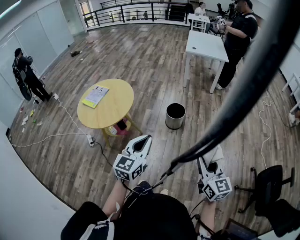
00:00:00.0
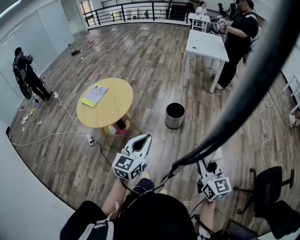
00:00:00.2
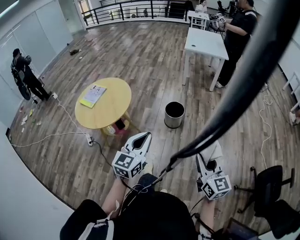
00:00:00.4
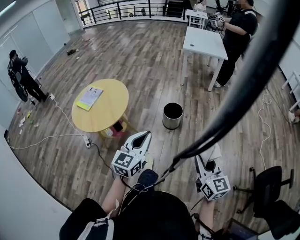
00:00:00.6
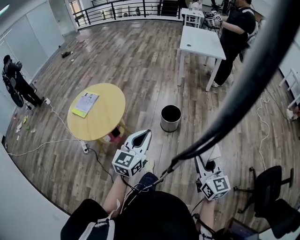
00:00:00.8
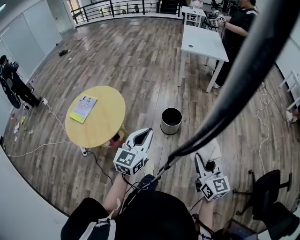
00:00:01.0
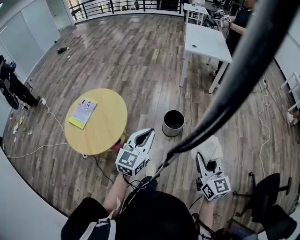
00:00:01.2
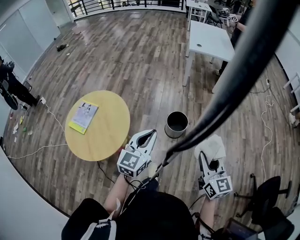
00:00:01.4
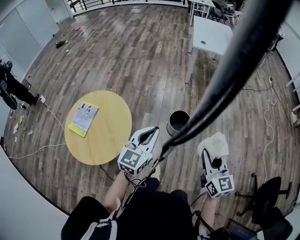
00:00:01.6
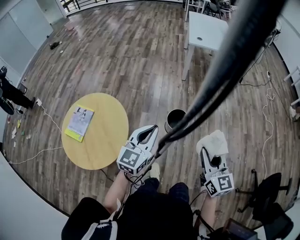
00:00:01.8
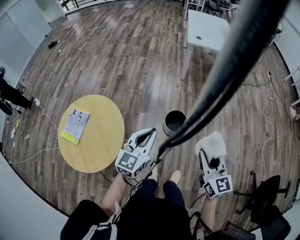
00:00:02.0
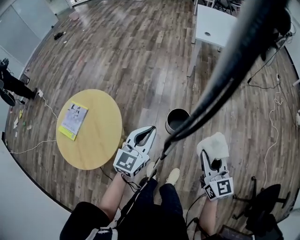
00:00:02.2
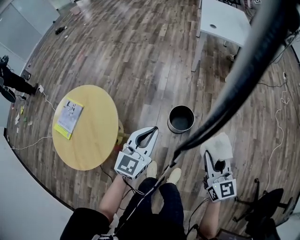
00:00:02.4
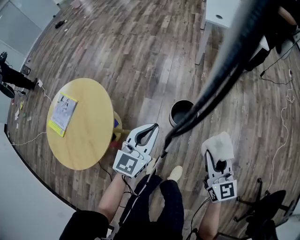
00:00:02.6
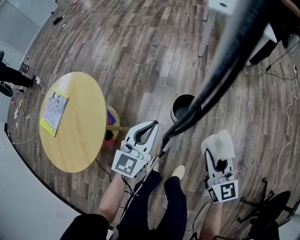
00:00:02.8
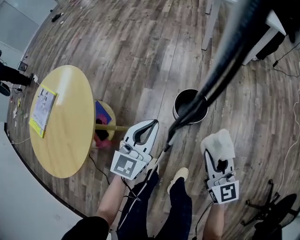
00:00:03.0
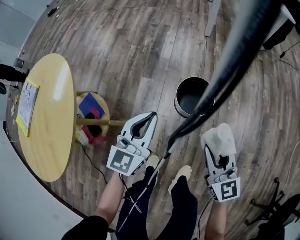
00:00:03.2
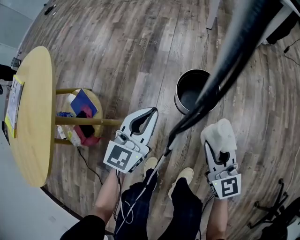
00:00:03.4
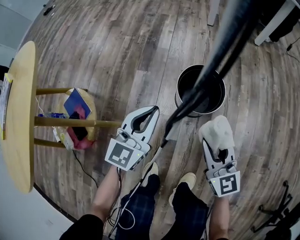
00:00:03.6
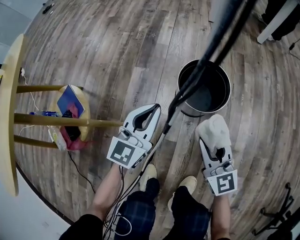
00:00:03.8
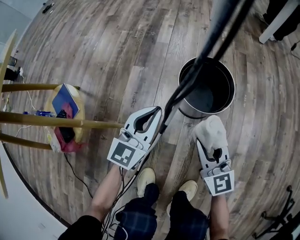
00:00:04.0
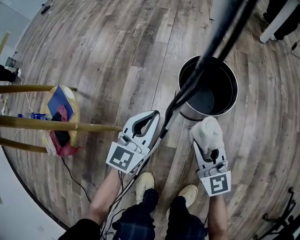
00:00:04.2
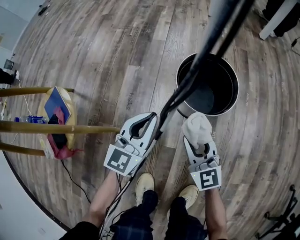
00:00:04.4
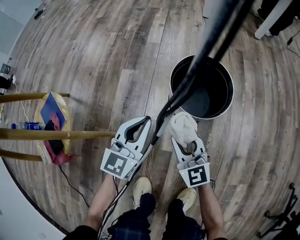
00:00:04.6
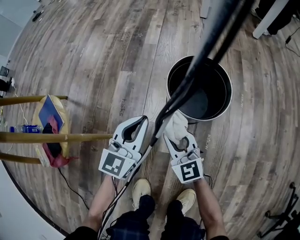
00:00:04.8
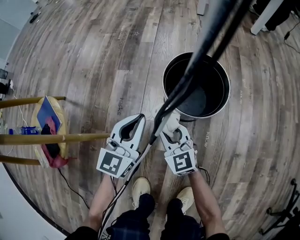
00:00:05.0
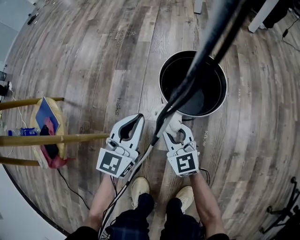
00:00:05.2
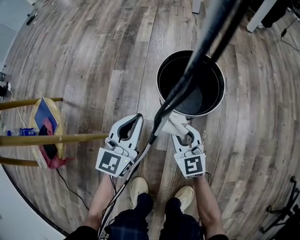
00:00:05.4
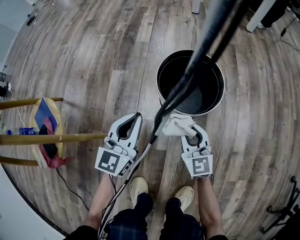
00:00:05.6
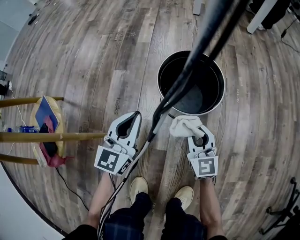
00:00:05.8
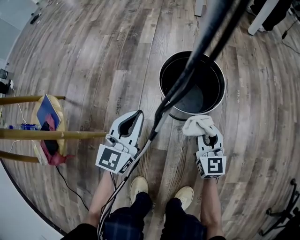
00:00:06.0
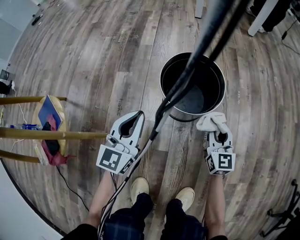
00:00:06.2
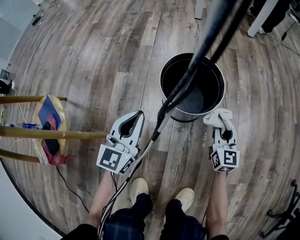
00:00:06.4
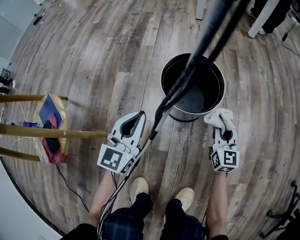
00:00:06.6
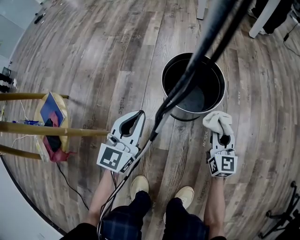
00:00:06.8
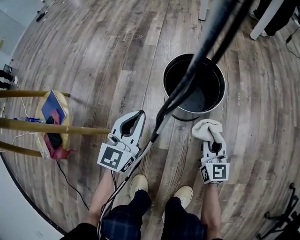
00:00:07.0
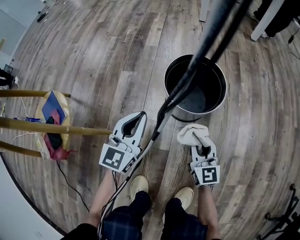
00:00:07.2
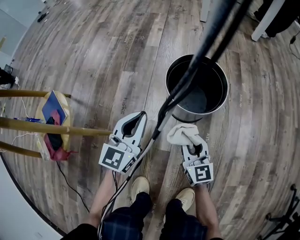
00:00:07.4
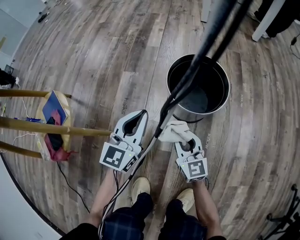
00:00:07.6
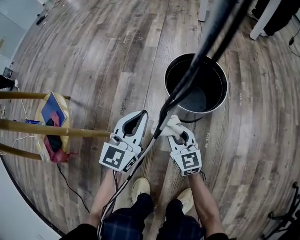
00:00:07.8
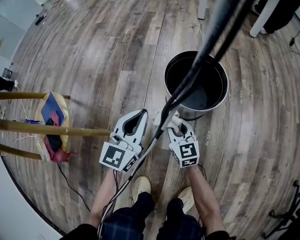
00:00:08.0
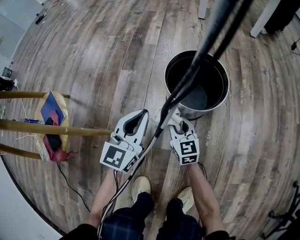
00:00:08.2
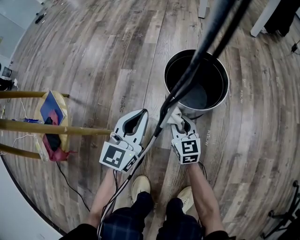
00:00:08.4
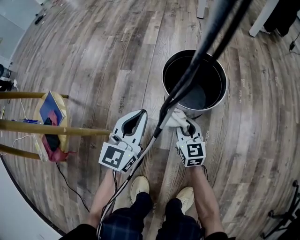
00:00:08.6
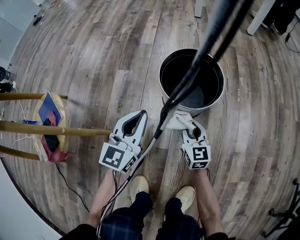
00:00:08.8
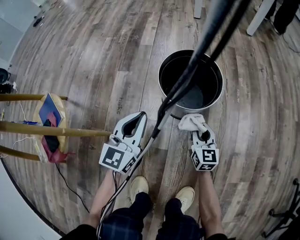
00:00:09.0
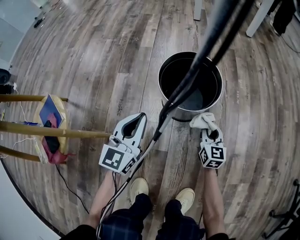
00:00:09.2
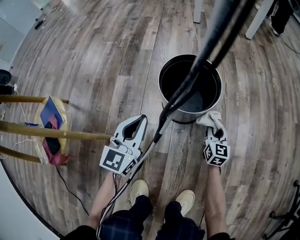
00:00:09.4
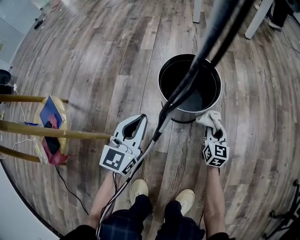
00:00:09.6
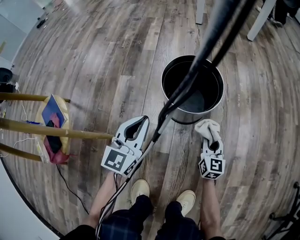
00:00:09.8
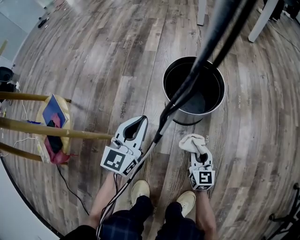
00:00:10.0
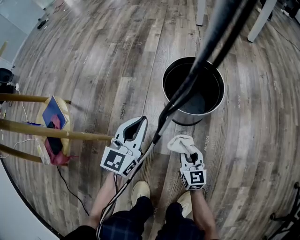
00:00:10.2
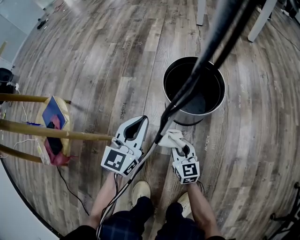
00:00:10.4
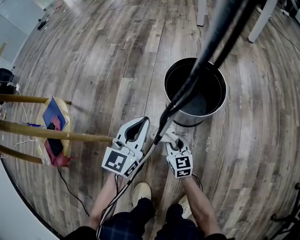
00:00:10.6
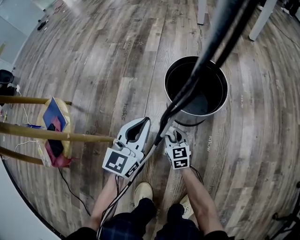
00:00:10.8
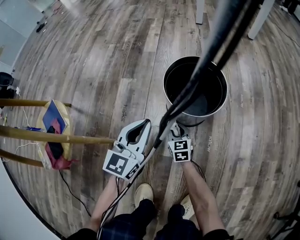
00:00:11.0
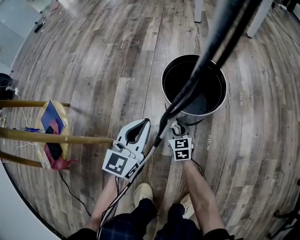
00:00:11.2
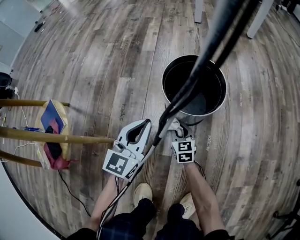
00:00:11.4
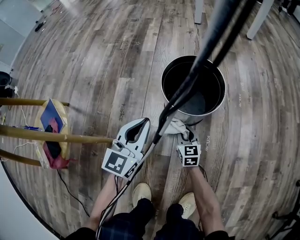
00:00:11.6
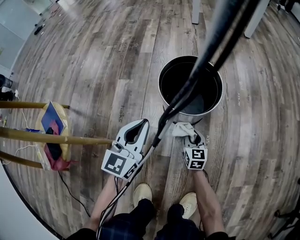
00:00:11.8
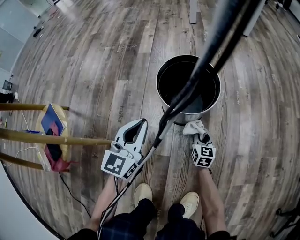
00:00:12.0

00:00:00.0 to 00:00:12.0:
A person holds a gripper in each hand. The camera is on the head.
00:00:00.0 to 00:00:01.6: Both grippers travel together forward, approximately 35 cm.
00:00:01.6 to 00:00:03.0: Both grippers move downward and forward, roughly 35 cm.
00:00:03.0 to 00:00:04.4: The two grippers go roughly 40 cm downward.
00:00:04.4 to 00:00:06.0: The right gripper heads to the right and downward, covering some 15 cm, and swivels roughly 20 degrees.
00:00:06.0 to 00:00:07.6: The right gripper moves to the left, about 10 cm.
00:00:07.6 to 00:00:09.0: The right gripper goes some 10 cm to the right and downward.
00:00:09.0 to 00:00:10.4: The right gripper travels to the left and backward by roughly 10 cm.
00:00:10.4 to 00:00:12.0: The right gripper shifts about 15 cm to the right, downward and forward, and rotates approximately 20 degrees.

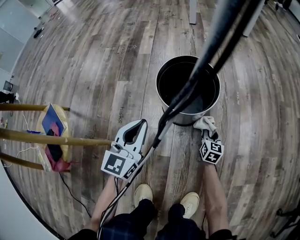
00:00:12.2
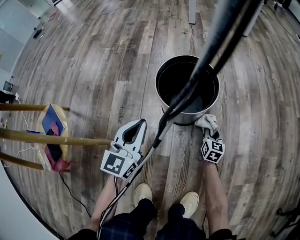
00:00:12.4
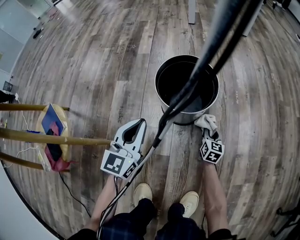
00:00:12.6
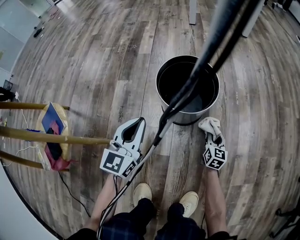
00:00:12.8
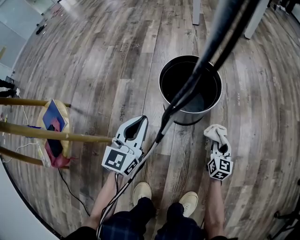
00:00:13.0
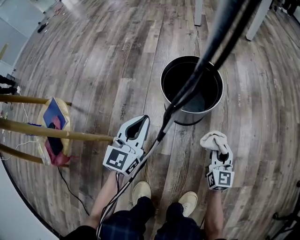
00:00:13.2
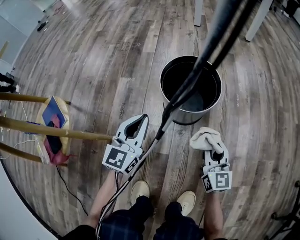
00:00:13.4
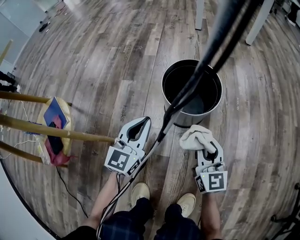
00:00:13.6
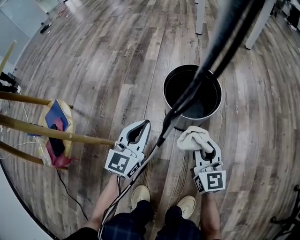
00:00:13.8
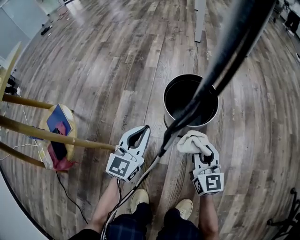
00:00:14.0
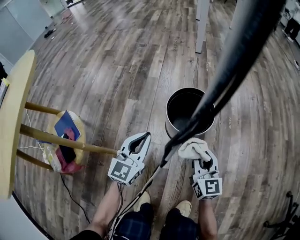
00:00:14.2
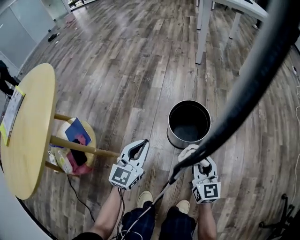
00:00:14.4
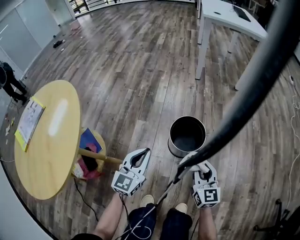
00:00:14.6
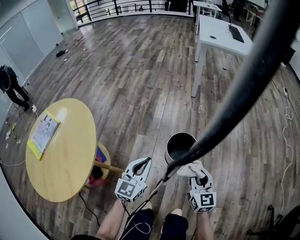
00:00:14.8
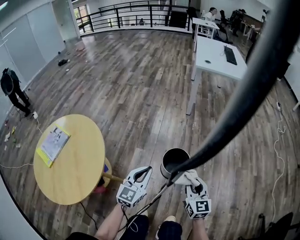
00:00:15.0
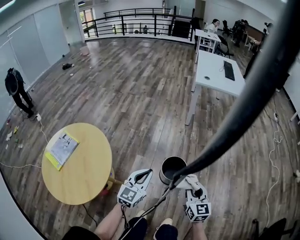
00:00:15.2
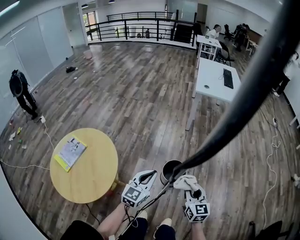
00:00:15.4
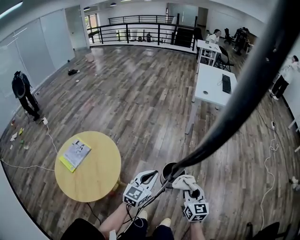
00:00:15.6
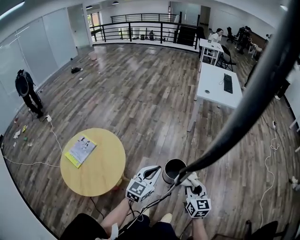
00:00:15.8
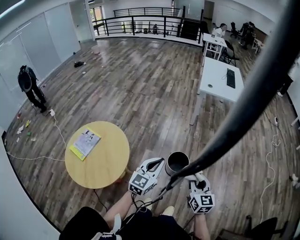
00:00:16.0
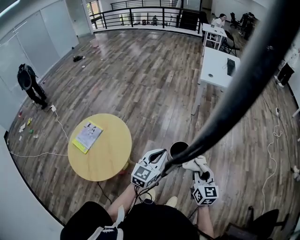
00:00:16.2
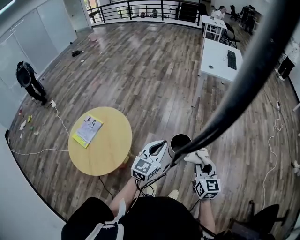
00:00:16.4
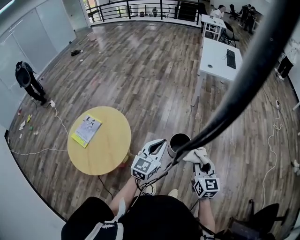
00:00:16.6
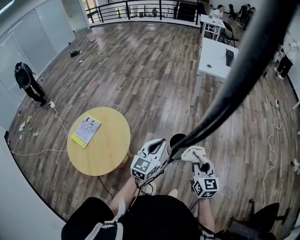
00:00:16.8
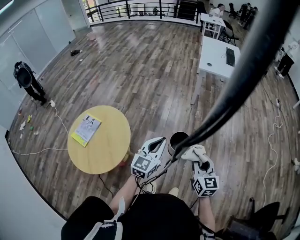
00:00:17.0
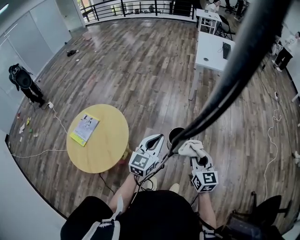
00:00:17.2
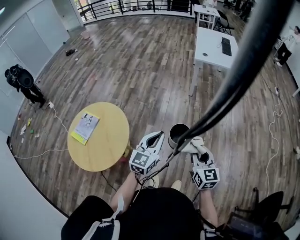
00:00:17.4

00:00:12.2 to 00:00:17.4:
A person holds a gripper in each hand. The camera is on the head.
00:00:12.2 to 00:00:14.0: The right gripper is displaced upward by about 25 cm, and swivels roughly 30 degrees.
00:00:14.0 to 00:00:15.6: The two grippers go roughly 60 cm upward.
00:00:15.6 to 00:00:17.4: The grippers both shift upward by approximately 10 cm.

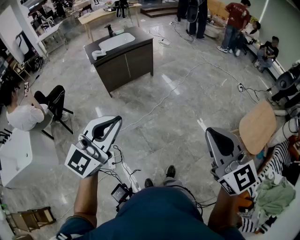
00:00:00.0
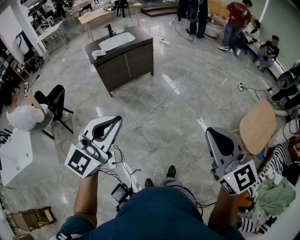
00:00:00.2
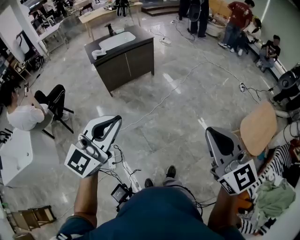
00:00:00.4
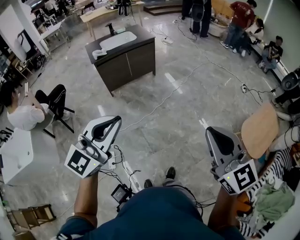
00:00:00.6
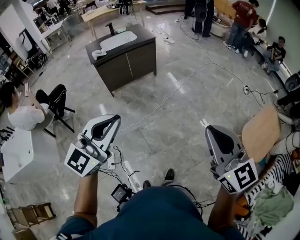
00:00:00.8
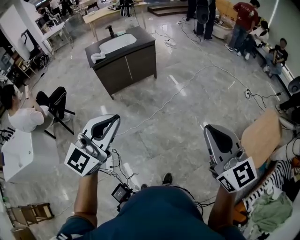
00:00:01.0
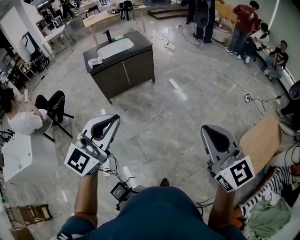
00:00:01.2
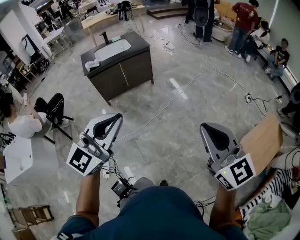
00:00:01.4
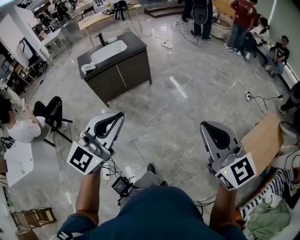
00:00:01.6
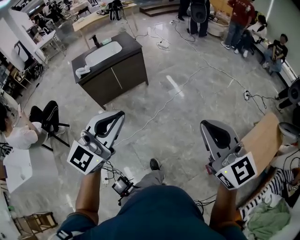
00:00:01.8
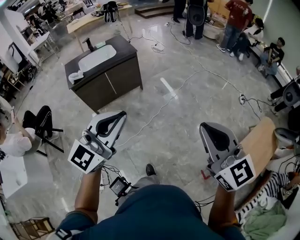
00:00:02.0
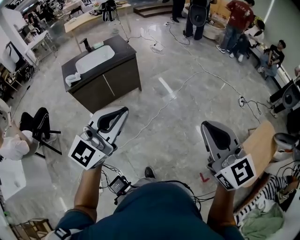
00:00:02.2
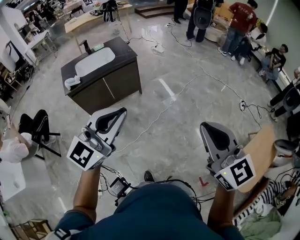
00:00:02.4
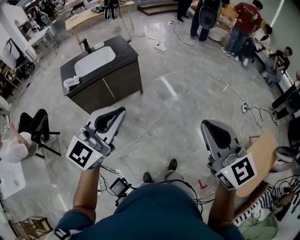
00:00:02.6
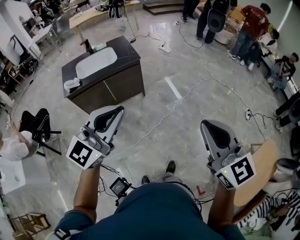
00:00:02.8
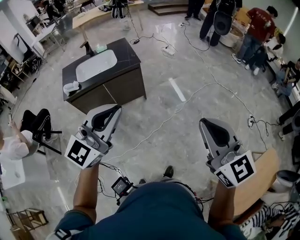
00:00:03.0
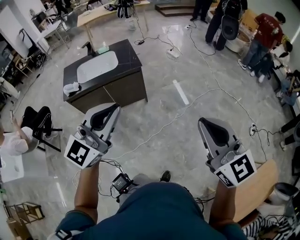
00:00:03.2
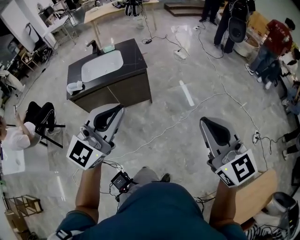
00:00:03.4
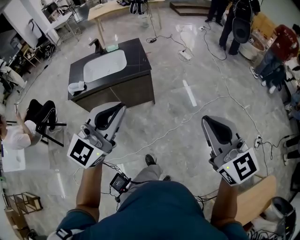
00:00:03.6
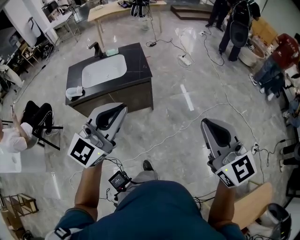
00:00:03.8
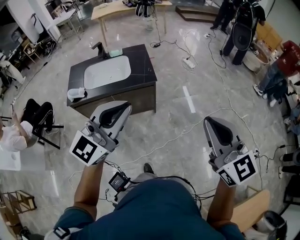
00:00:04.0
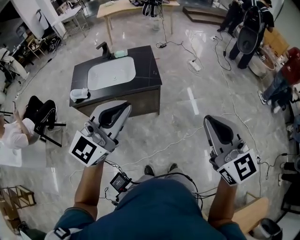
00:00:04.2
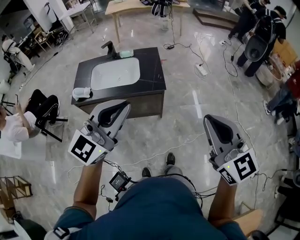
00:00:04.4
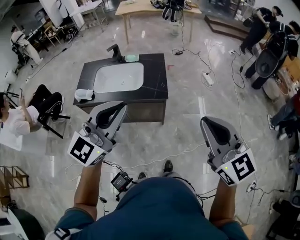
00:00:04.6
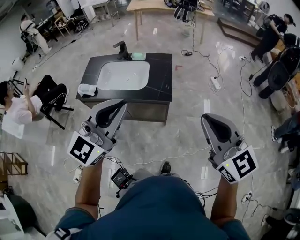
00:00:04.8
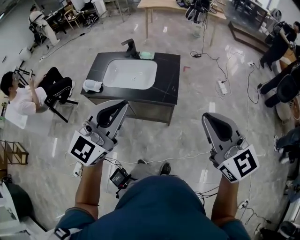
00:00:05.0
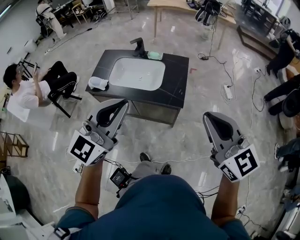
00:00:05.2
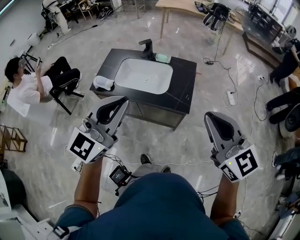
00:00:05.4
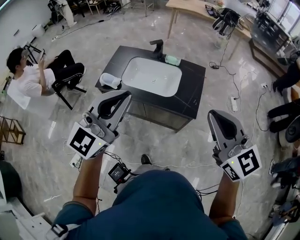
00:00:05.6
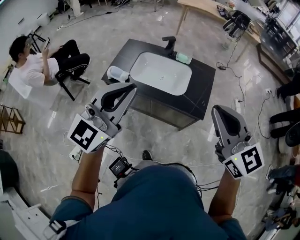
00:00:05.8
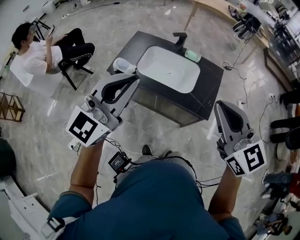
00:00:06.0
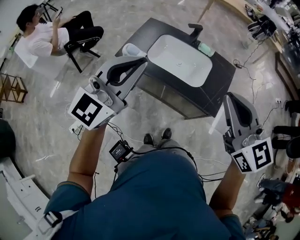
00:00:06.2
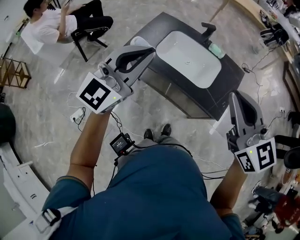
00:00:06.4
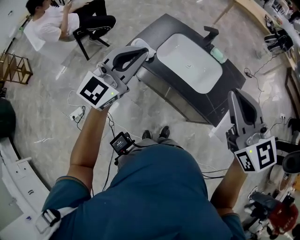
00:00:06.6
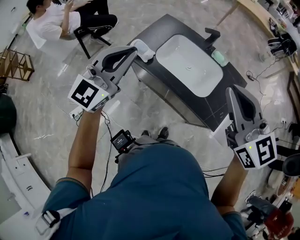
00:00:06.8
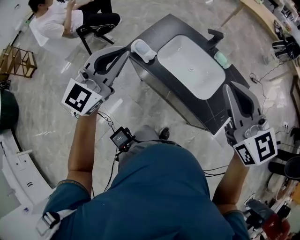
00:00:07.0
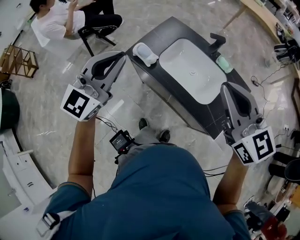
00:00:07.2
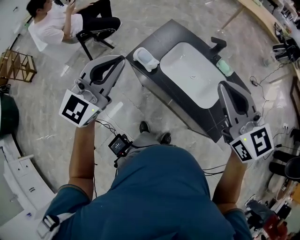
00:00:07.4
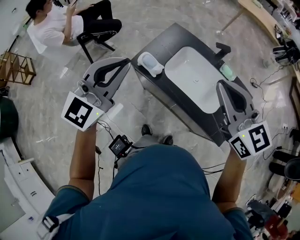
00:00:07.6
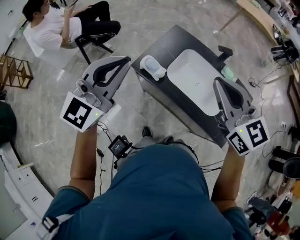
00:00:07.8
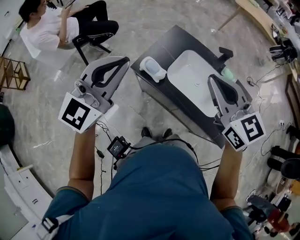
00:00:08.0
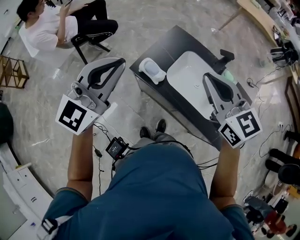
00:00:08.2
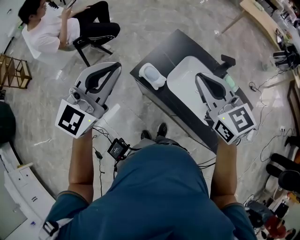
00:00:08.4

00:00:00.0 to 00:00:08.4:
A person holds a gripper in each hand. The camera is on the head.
00:00:00.0 to 00:00:01.4: Both grippers move forward and to the right, about 25 cm.
00:00:01.4 to 00:00:02.8: The grippers both shift forward by roughly 40 cm.
00:00:02.8 to 00:00:04.2: The two grippers go some 35 cm forward.
00:00:04.2 to 00:00:05.6: The left gripper moves roughly 20 cm, and turns by approximately 30 degrees; the right gripper ends up about 30 cm from where it was, and turns by approximately 30 degrees.
00:00:05.6 to 00:00:07.0: The left gripper moves forward, to the left and downward, about 25 cm, and turns by about 20 degrees. Meanwhile the right gripper shifts approximately 25 cm forward and to the left, and rotates about 20 degrees.
00:00:07.0 to 00:00:08.4: The left gripper heads to the left and forward, covering roughly 15 cm; the right gripper moves forward and to the left, some 25 cm.